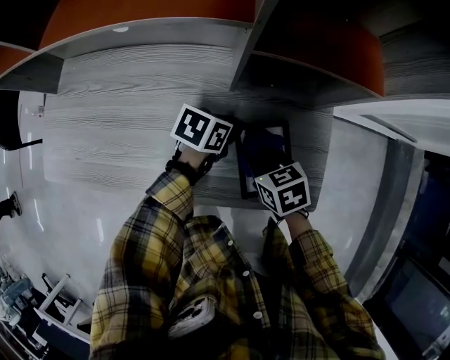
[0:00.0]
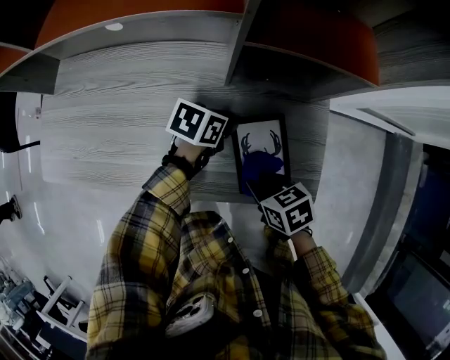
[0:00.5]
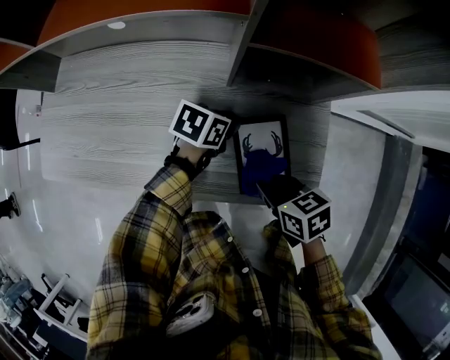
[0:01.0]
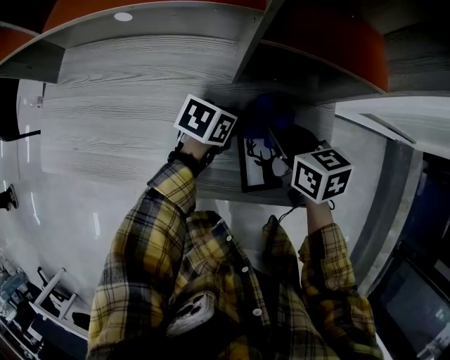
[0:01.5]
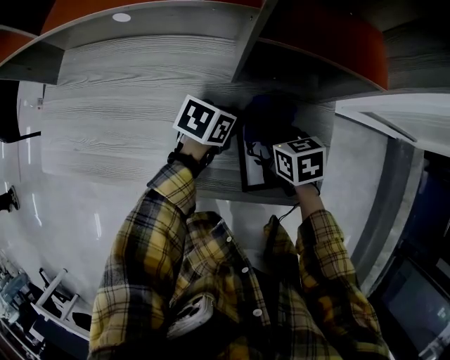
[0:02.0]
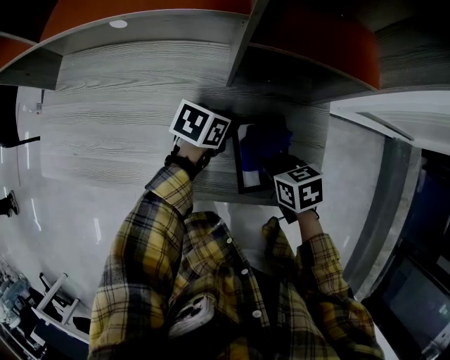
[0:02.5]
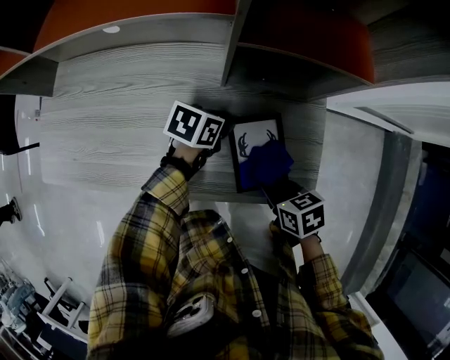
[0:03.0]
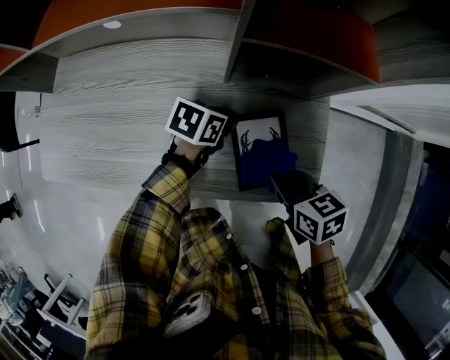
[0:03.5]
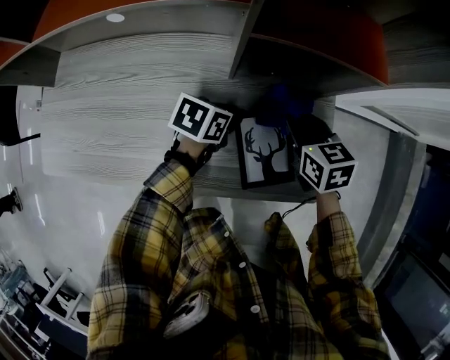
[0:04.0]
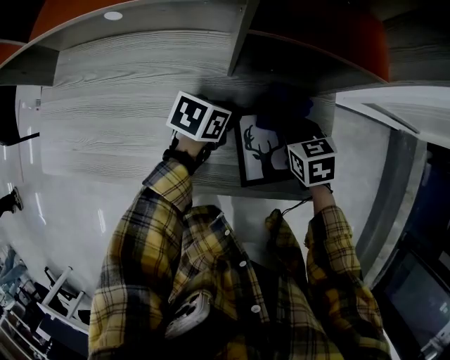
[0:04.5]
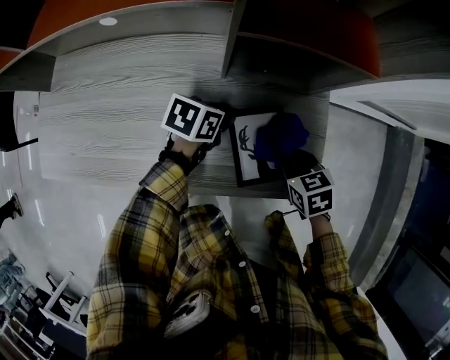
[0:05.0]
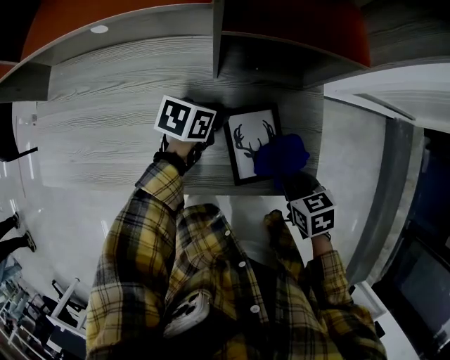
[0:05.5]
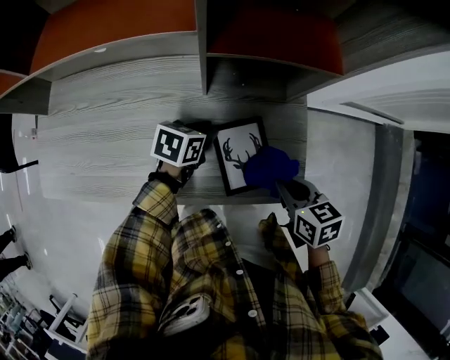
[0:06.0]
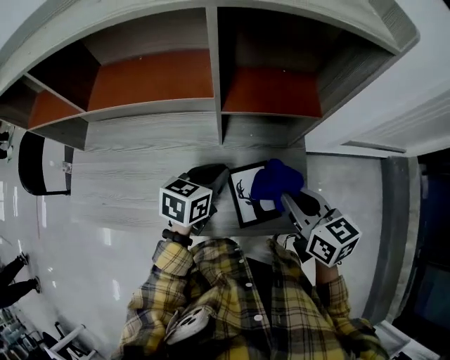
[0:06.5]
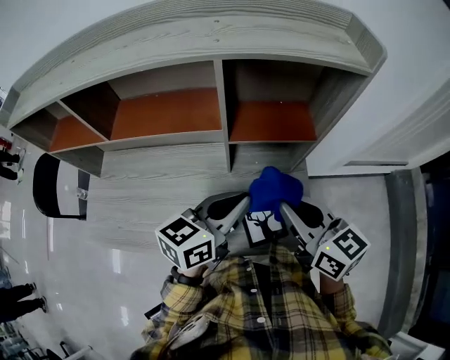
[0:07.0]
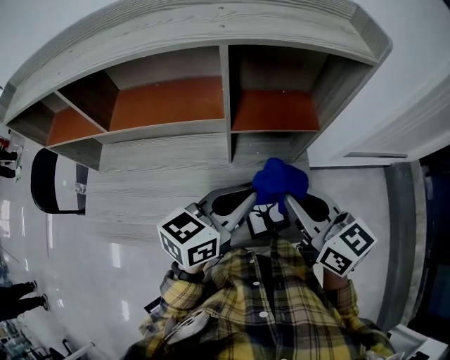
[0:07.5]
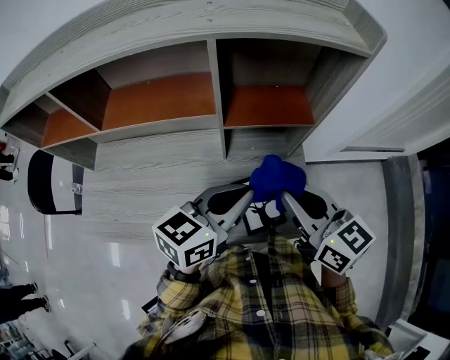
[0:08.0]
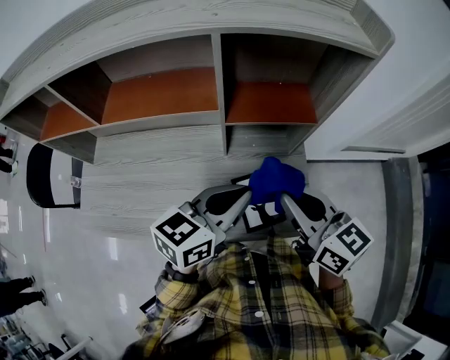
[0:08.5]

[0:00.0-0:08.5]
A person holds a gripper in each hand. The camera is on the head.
0:00.0 to 0:02.0: The right gripper goes upward and returns, some 5 cm each way.
0:02.0 to 0:04.0: The right gripper moves upward, approximately 5 cm.
0:04.0 to 0:06.5: The left gripper is displaced upward by approximately 15 cm, and rotates about 20 degrees. The right gripper goes some 20 cm upward and backward.
0:06.5 to 0:08.5: The left gripper shifts about 15 cm upward, and swivels roughly 20 degrees; the right gripper travels upward by roughly 10 cm.

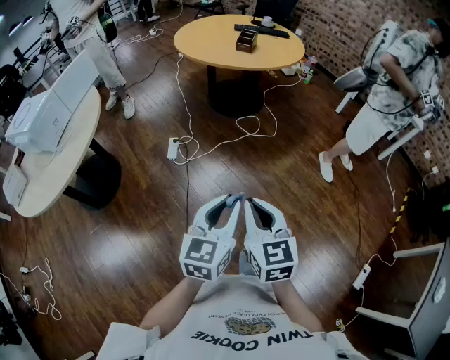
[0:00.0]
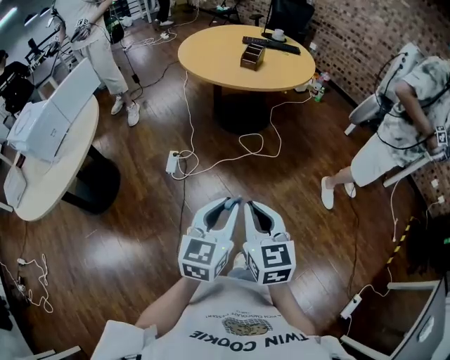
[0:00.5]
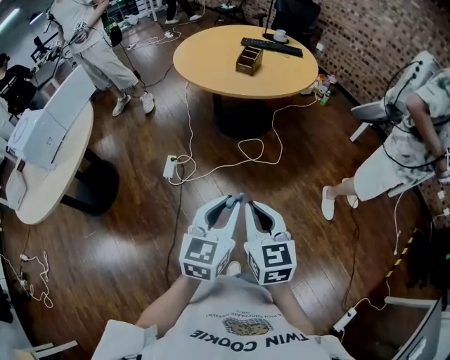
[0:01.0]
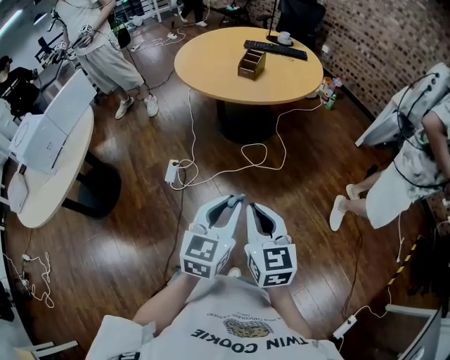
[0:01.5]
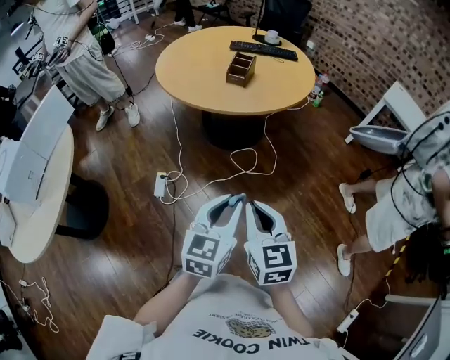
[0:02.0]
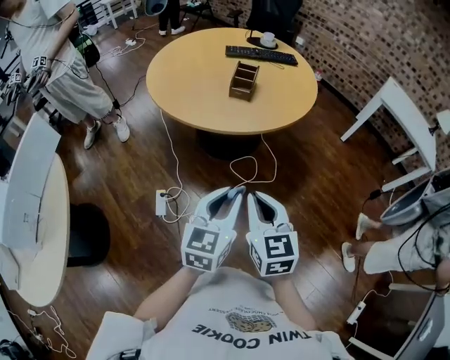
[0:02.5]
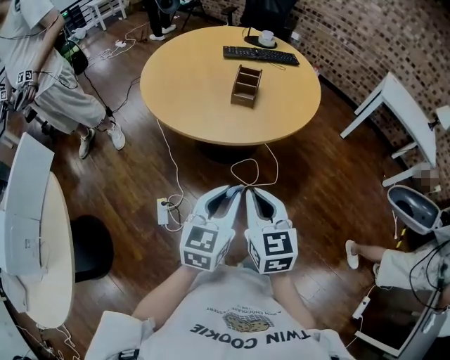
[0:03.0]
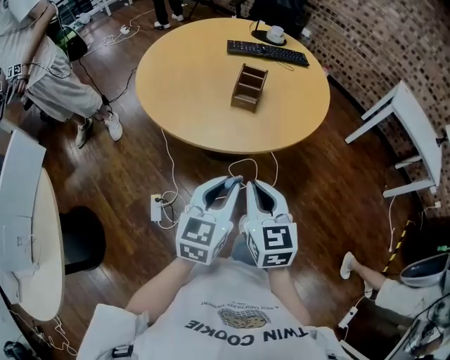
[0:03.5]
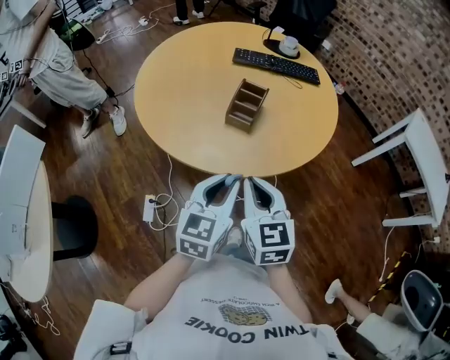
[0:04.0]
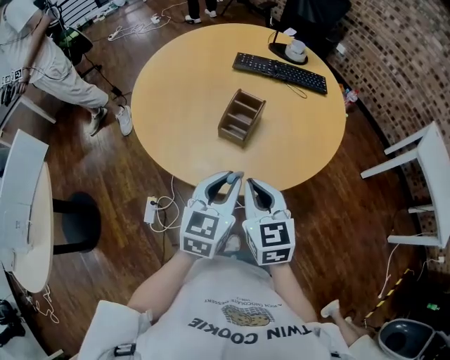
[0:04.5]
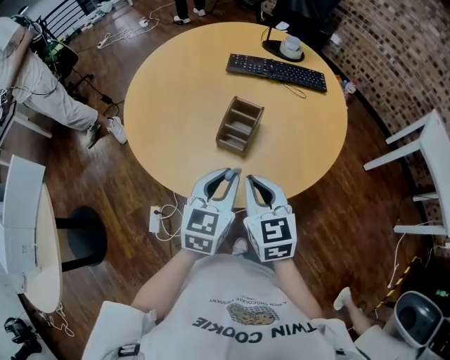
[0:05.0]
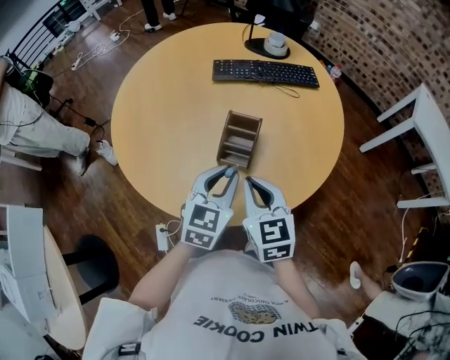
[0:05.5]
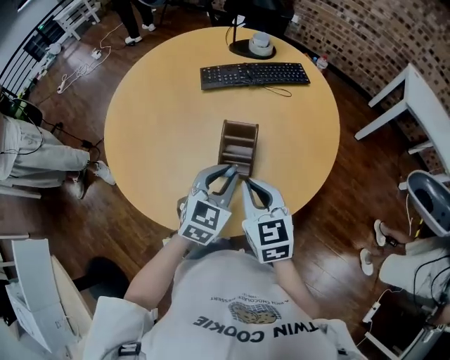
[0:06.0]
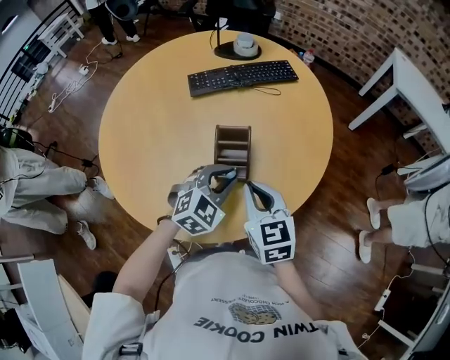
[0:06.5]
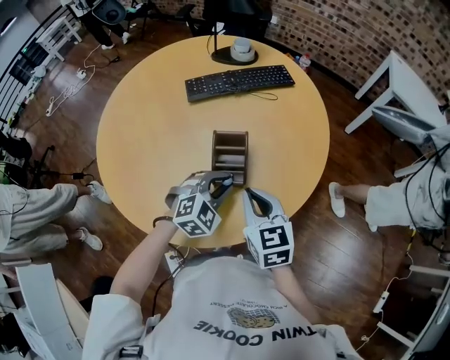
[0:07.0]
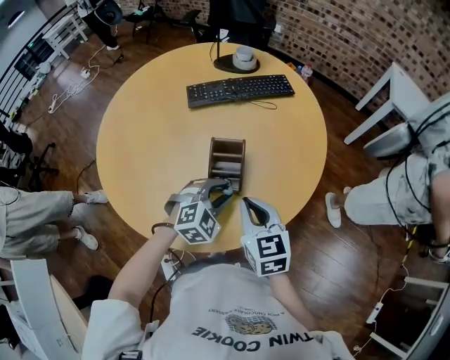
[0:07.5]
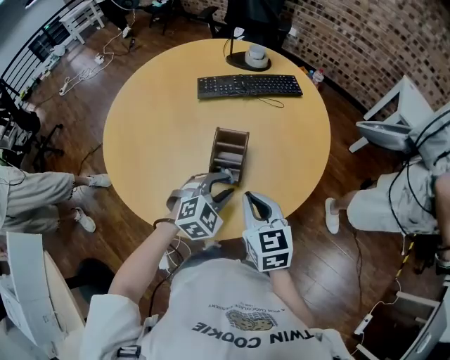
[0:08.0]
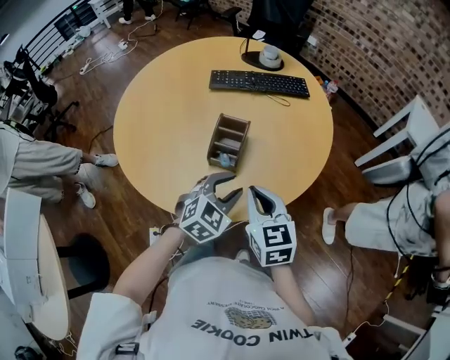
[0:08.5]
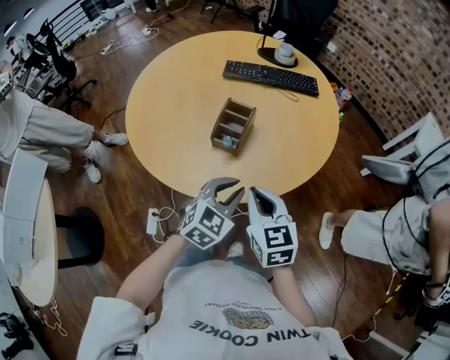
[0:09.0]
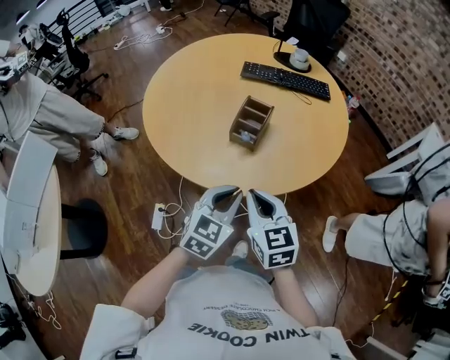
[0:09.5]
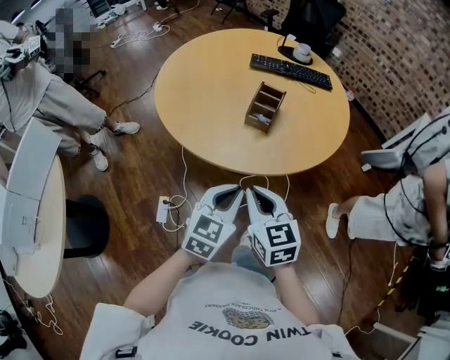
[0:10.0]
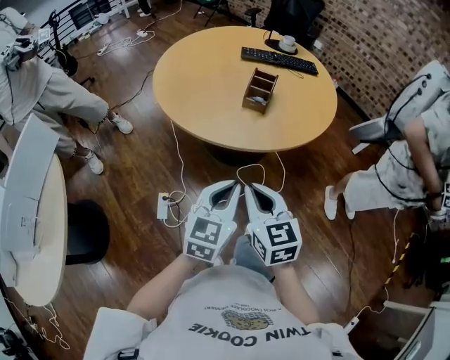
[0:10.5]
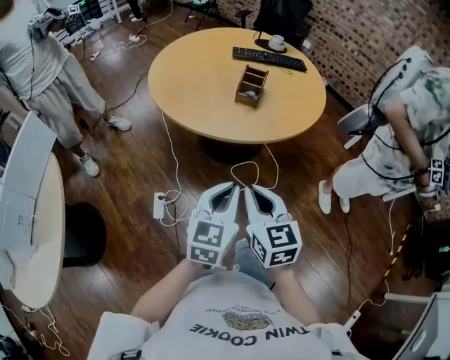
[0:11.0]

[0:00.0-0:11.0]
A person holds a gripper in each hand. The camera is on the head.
0:00.0 to 0:02.0: Both grippers move forward, approximately 40 cm.
0:02.0 to 0:03.5: Both grippers move forward and to the left, about 30 cm.
0:03.5 to 0:05.5: Both grippers travel together forward, some 30 cm.
0:05.5 to 0:07.5: The left gripper travels downward by about 10 cm, and twists some 50 degrees clockwise, seen from behind.
0:07.5 to 0:09.0: The left gripper is displaced backward, to the right and upward by some 15 cm, and rotates approximately 40 degrees. The right gripper is displaced backward and to the right by some 15 cm.
0:09.0 to 0:11.0: Both grippers travel together backward and to the left, approximately 30 cm. The left gripper swivels some 30 degrees.

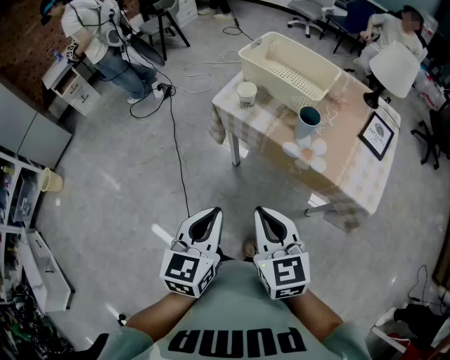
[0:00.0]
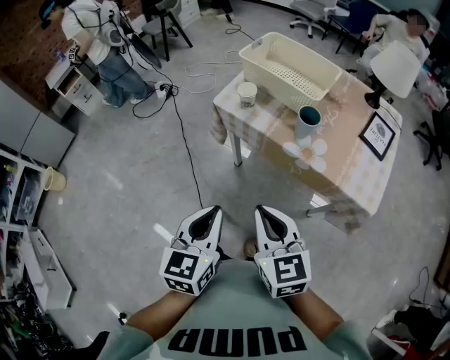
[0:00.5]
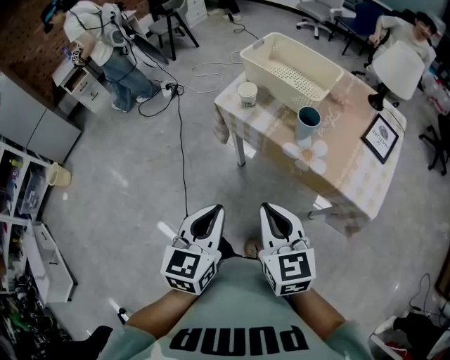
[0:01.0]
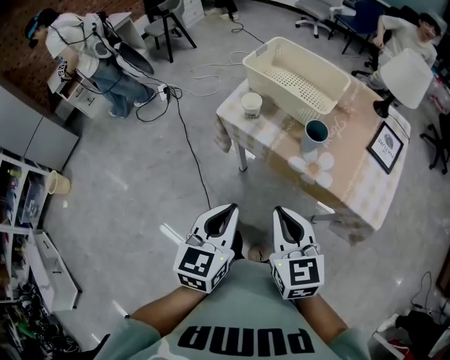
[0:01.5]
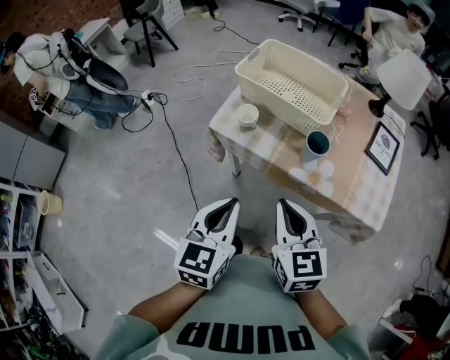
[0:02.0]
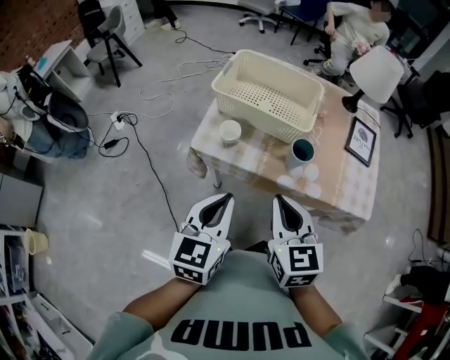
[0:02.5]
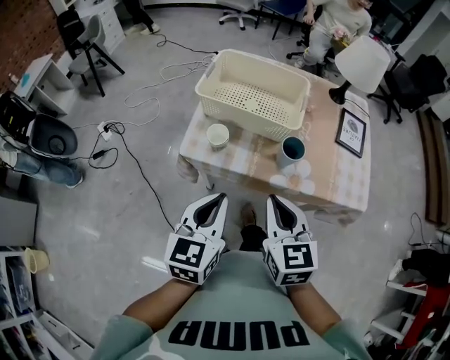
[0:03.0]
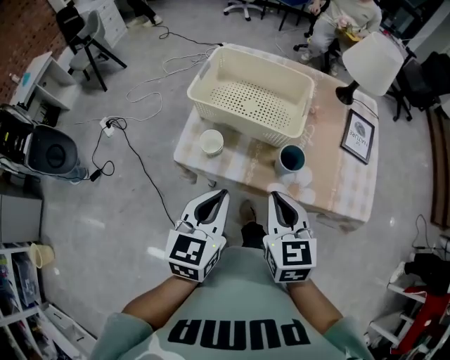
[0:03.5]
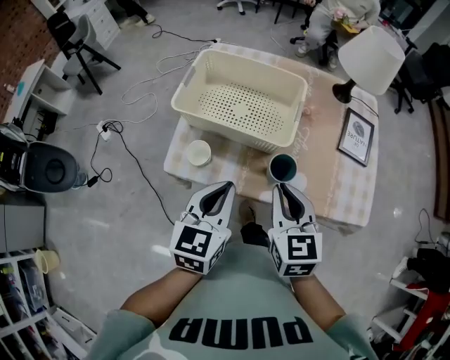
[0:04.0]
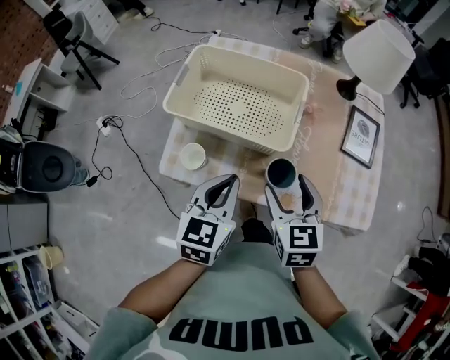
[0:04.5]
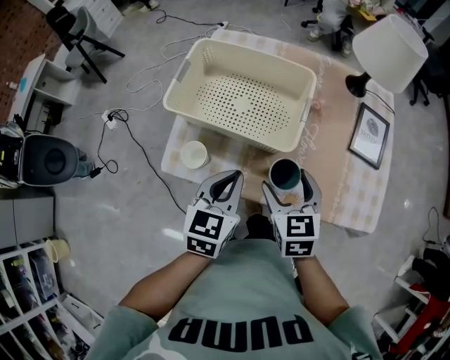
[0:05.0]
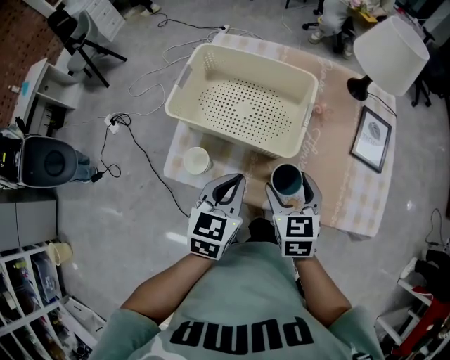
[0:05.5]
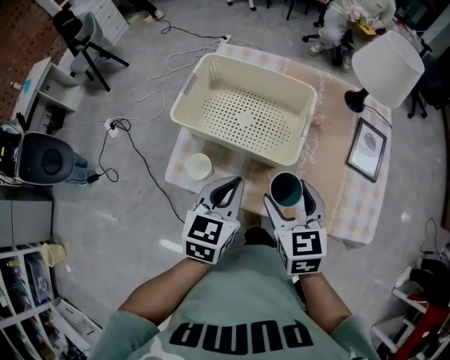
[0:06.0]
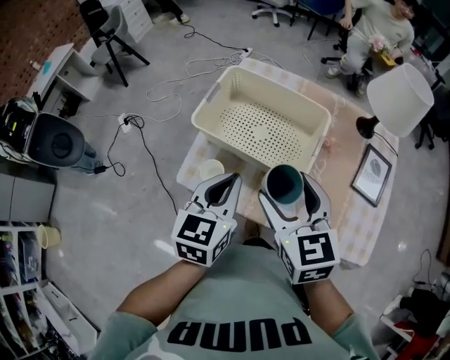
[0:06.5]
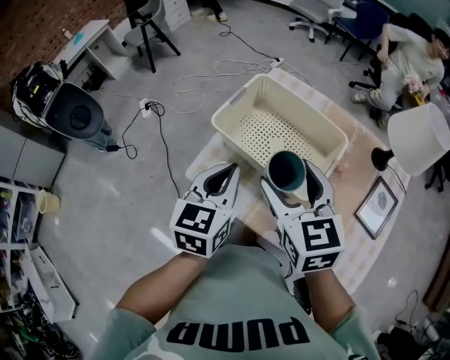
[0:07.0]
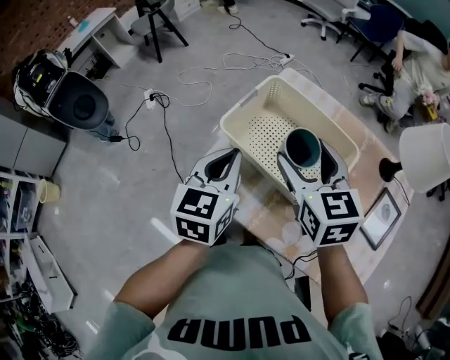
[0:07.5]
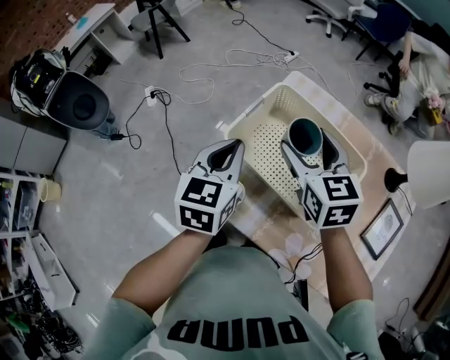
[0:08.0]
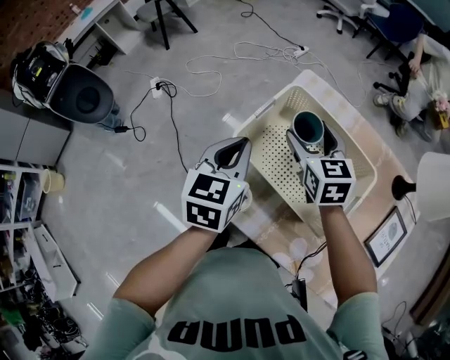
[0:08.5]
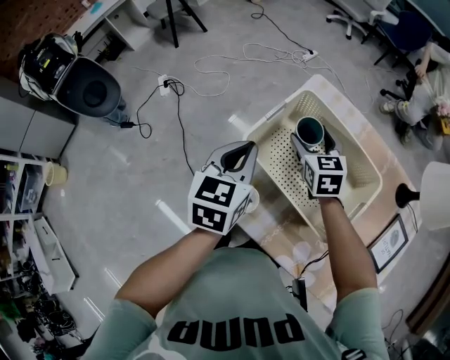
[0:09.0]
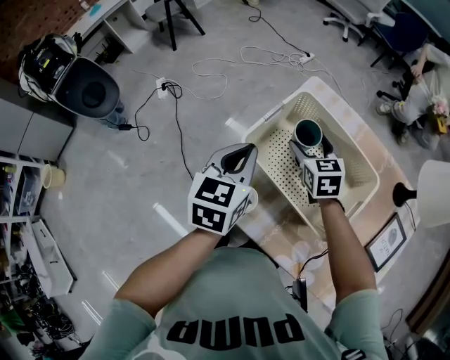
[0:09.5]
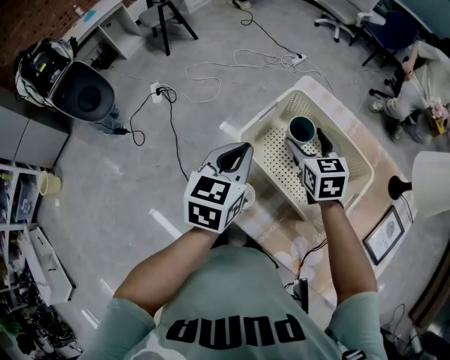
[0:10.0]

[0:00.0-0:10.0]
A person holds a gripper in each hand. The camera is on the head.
0:00.0 to 0:02.0: The grippers both shift forward by roughly 15 cm.
0:02.0 to 0:04.0: Both grippers move forward, roughly 15 cm.
0:04.0 to 0:06.0: Both grippers move forward, about 5 cm. The right gripper travels downward and back again, some 10 cm each way, and opens its fingers.
0:06.0 to 0:08.0: The right gripper shifts roughly 25 cm forward, and changes its angle by approximately 20 degrees. The left gripper shifts roughly 20 cm forward, to the left and upward, and turns by about 20 degrees.
0:08.0 to 0:10.0: The right gripper heads downward, covering roughly 10 cm.
